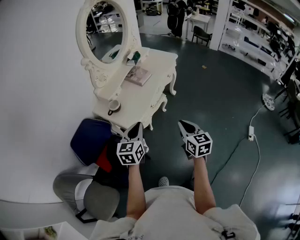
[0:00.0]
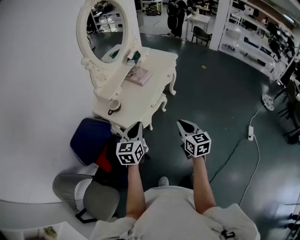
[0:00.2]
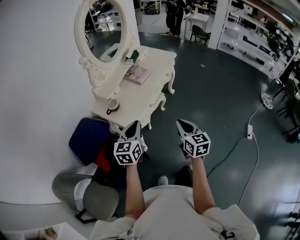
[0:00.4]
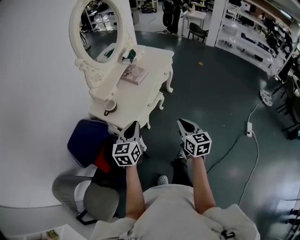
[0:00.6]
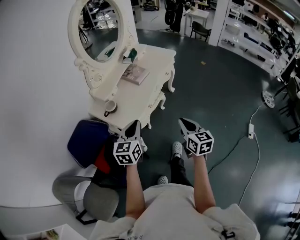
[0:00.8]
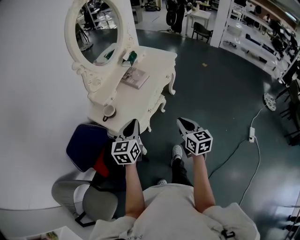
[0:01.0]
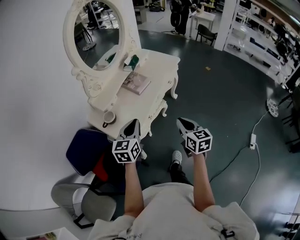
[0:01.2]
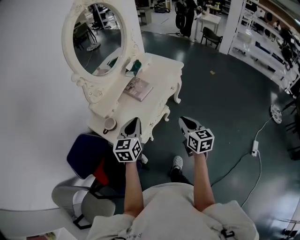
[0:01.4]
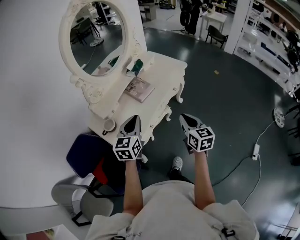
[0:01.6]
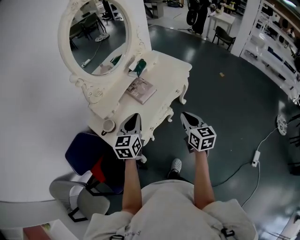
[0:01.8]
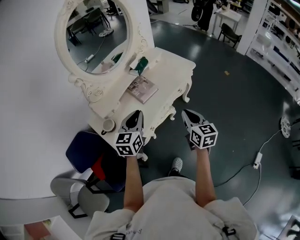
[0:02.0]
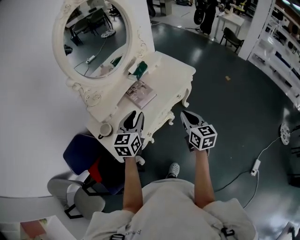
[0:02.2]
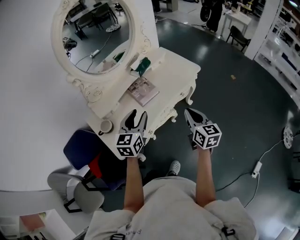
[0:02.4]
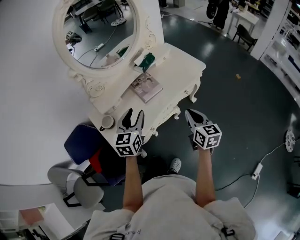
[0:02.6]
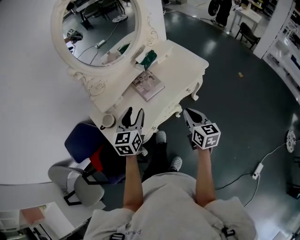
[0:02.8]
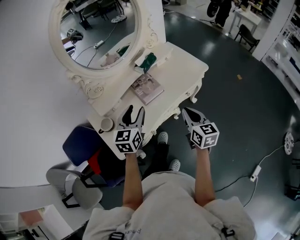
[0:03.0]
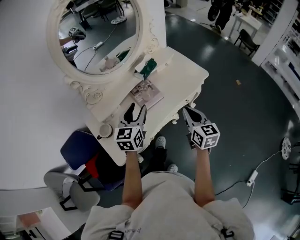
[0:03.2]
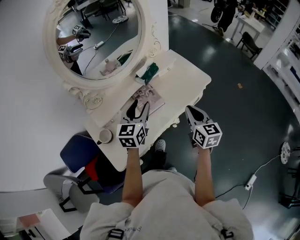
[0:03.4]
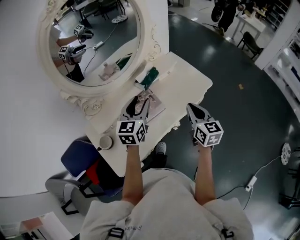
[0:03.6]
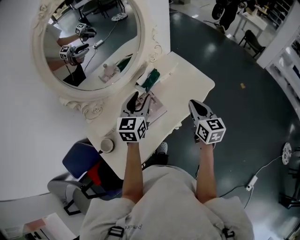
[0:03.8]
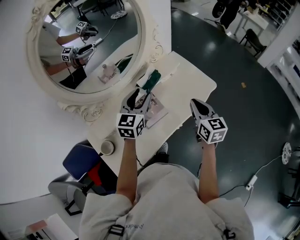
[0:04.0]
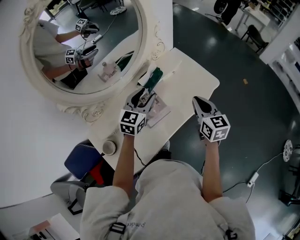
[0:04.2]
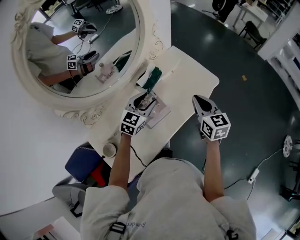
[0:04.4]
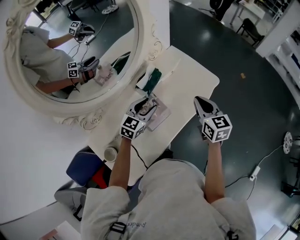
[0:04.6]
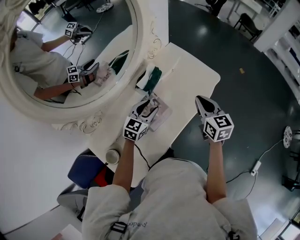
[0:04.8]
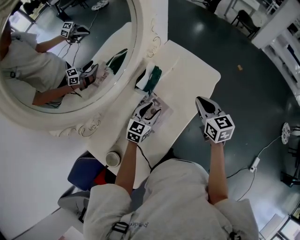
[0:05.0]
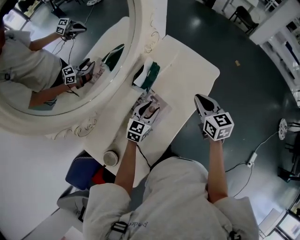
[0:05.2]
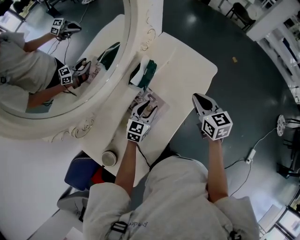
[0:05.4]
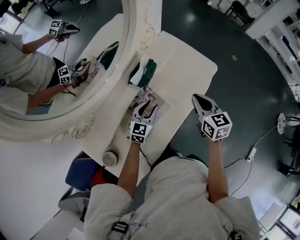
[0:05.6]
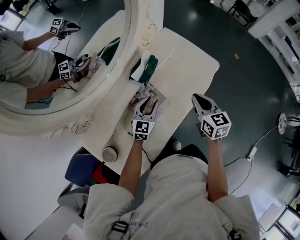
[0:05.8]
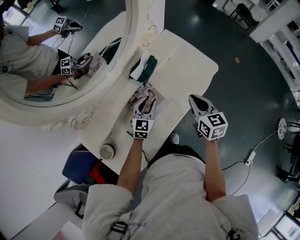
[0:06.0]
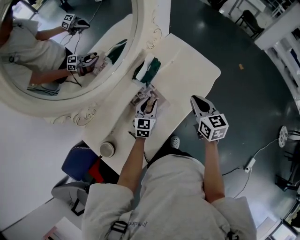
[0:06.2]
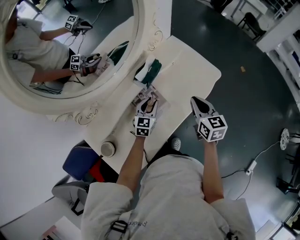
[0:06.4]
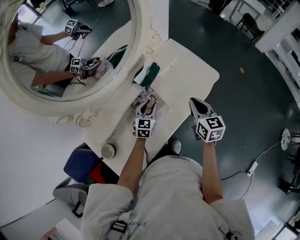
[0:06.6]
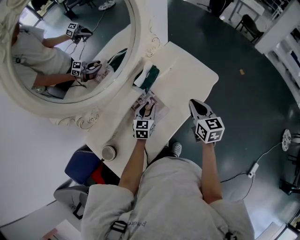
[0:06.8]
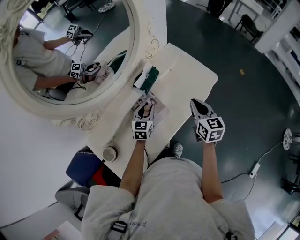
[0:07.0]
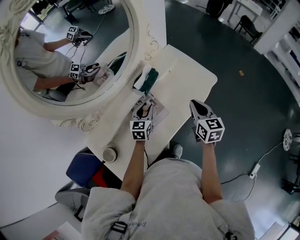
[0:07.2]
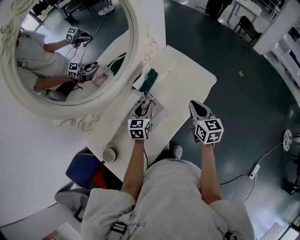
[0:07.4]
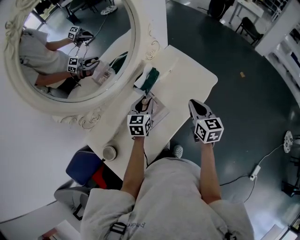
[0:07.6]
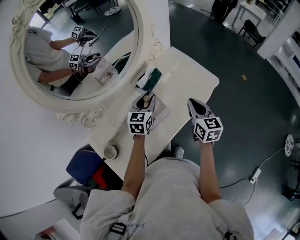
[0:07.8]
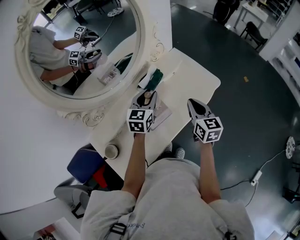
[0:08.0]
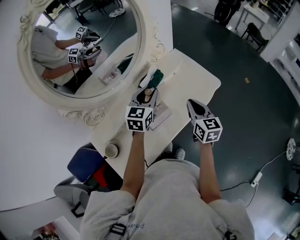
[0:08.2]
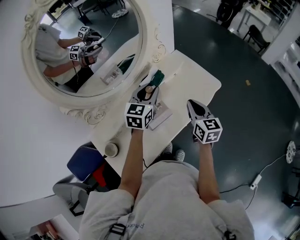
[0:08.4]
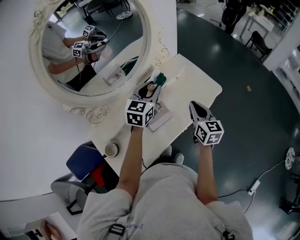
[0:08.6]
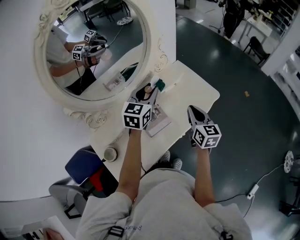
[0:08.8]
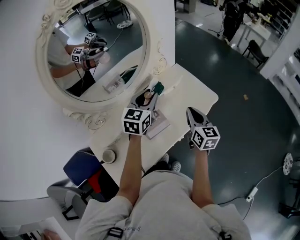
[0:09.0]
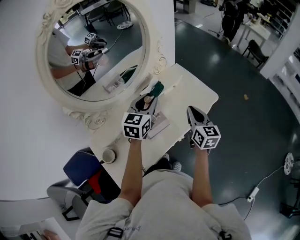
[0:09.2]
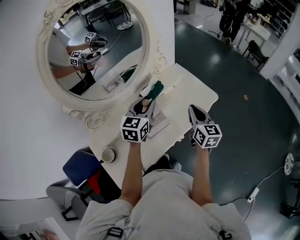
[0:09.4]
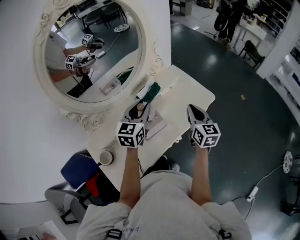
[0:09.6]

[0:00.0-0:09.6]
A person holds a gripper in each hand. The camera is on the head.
0:00.0 to 0:01.6: Both grippers move forward, roughly 25 cm.
0:01.6 to 0:03.2: The grippers both shift forward by approximately 20 cm. The left gripper opens.
0:03.2 to 0:04.8: The right gripper is displaced forward by roughly 20 cm, while the left gripper is displaced forward and downward by about 25 cm, and rotates roughly 30 degrees.
0:04.8 to 0:06.4: The left gripper travels downward by some 10 cm.
0:06.4 to 0:08.0: The left gripper heads upward, covering some 15 cm.
0:08.0 to 0:09.6: The left gripper shifts about 5 cm upward.

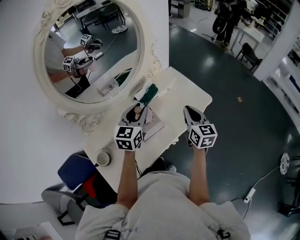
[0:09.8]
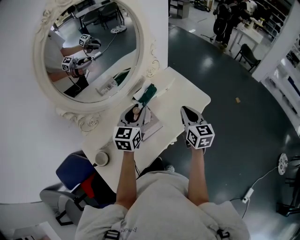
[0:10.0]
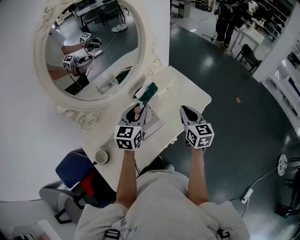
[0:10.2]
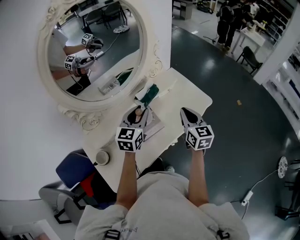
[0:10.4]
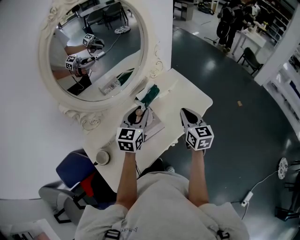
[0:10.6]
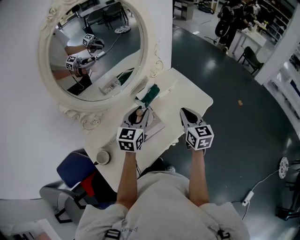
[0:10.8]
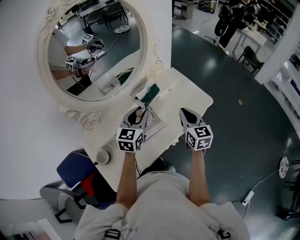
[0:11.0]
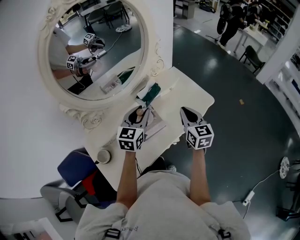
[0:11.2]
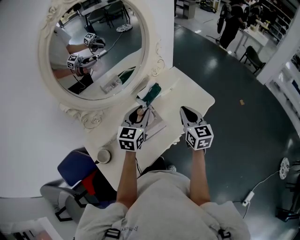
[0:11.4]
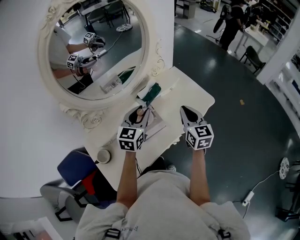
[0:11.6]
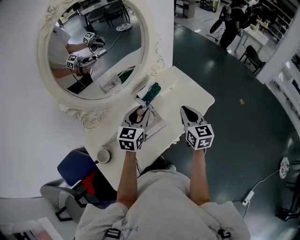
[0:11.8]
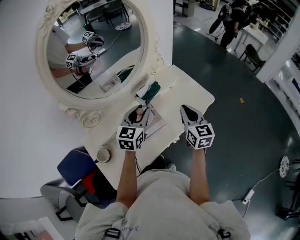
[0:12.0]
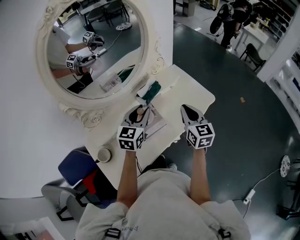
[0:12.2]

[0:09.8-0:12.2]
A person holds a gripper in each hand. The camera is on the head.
0:09.8 to 0:11.0: The grippers stay close to where they were, moving slightly.
0:11.0 to 0:12.2: Both grippers stay put.

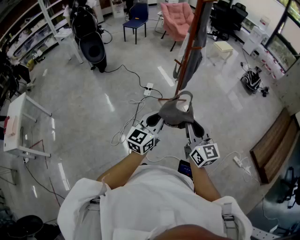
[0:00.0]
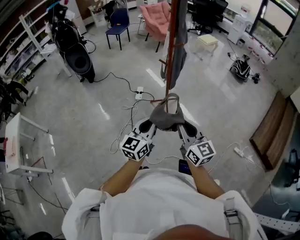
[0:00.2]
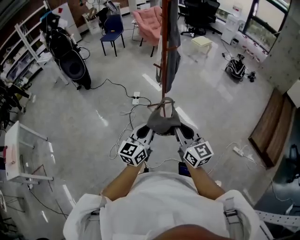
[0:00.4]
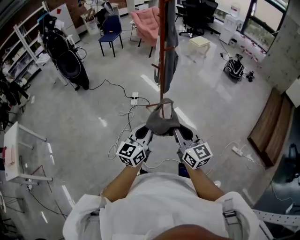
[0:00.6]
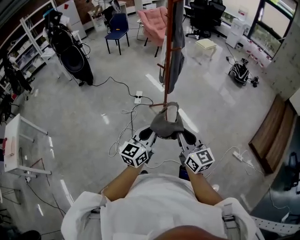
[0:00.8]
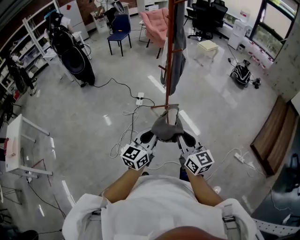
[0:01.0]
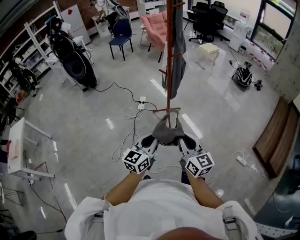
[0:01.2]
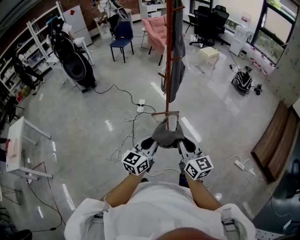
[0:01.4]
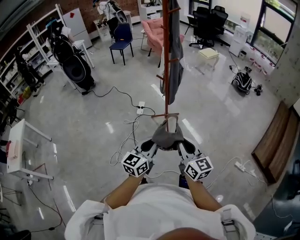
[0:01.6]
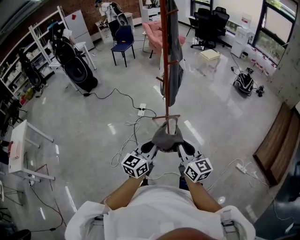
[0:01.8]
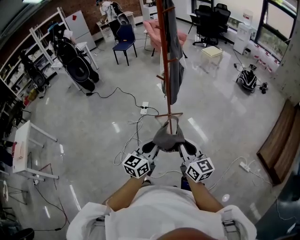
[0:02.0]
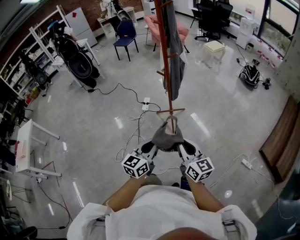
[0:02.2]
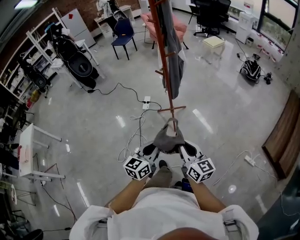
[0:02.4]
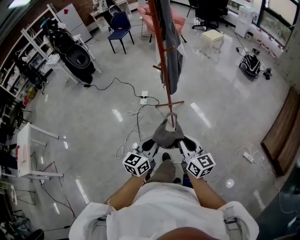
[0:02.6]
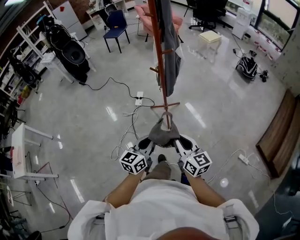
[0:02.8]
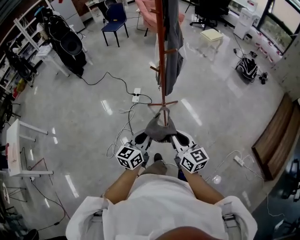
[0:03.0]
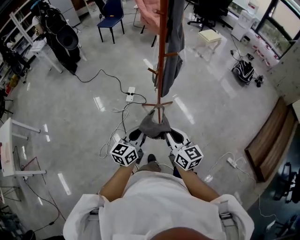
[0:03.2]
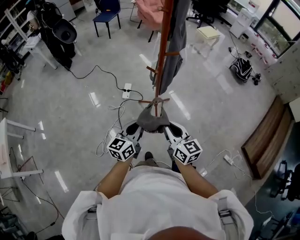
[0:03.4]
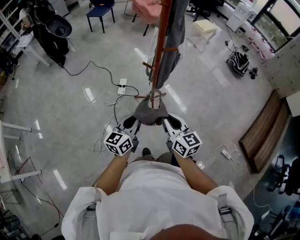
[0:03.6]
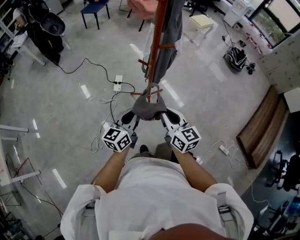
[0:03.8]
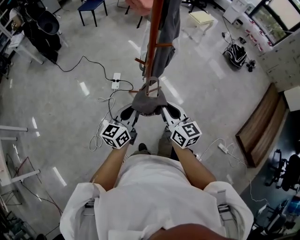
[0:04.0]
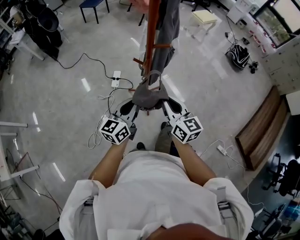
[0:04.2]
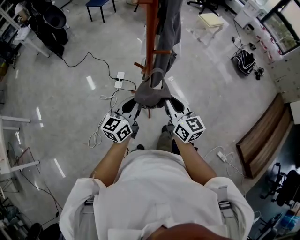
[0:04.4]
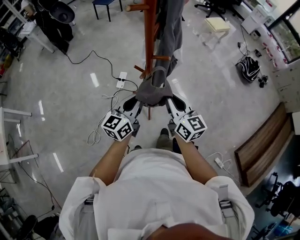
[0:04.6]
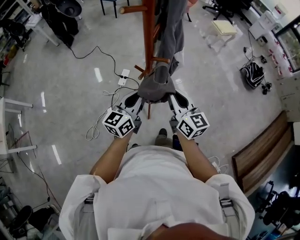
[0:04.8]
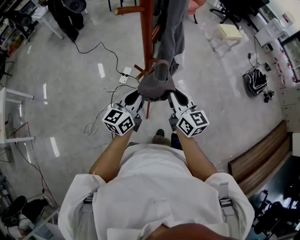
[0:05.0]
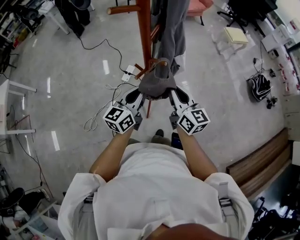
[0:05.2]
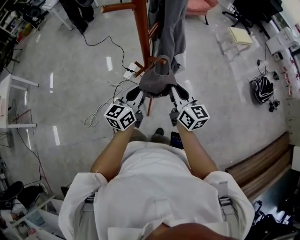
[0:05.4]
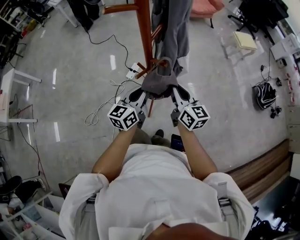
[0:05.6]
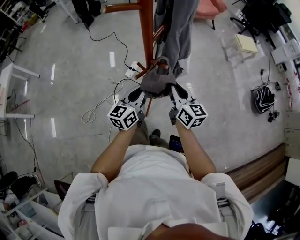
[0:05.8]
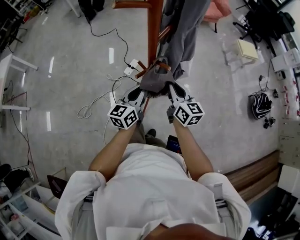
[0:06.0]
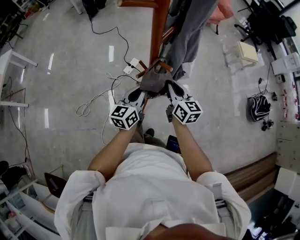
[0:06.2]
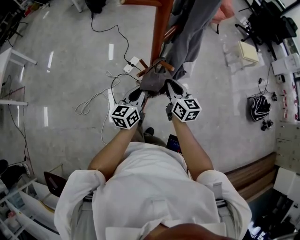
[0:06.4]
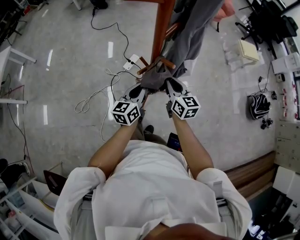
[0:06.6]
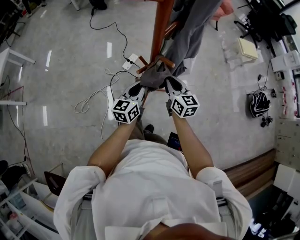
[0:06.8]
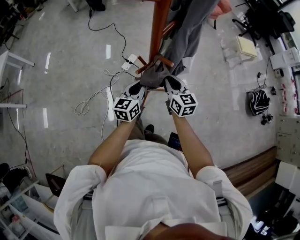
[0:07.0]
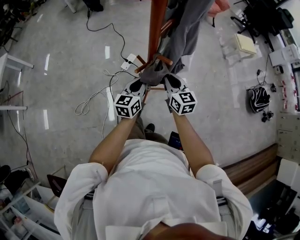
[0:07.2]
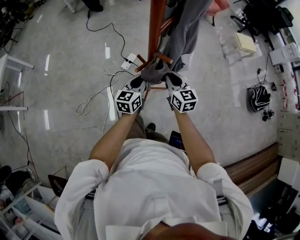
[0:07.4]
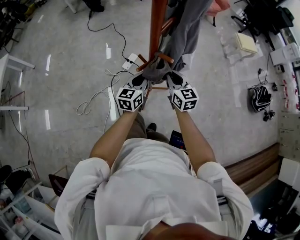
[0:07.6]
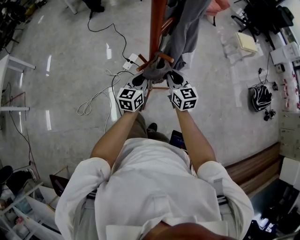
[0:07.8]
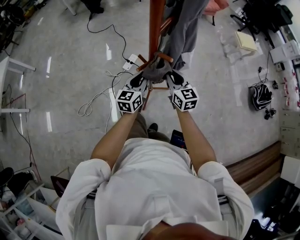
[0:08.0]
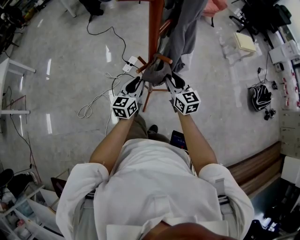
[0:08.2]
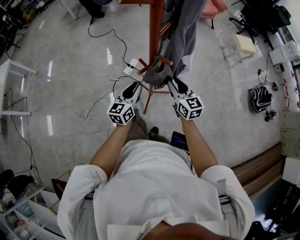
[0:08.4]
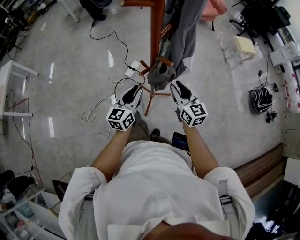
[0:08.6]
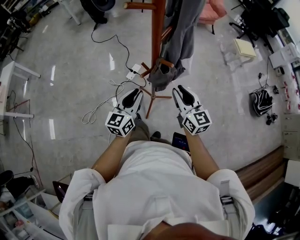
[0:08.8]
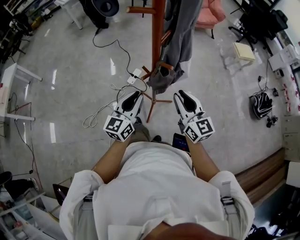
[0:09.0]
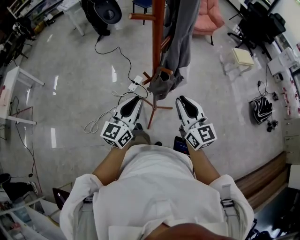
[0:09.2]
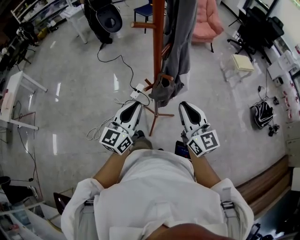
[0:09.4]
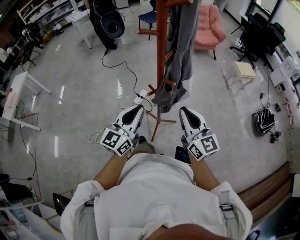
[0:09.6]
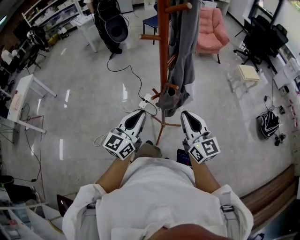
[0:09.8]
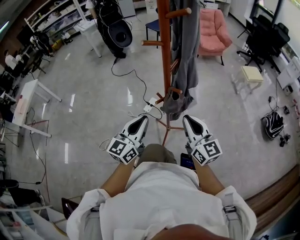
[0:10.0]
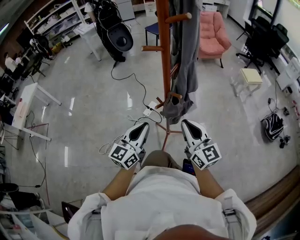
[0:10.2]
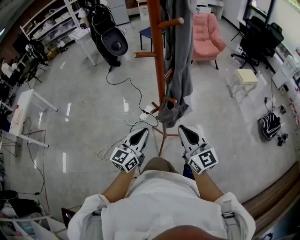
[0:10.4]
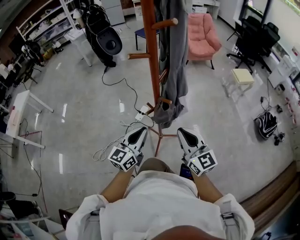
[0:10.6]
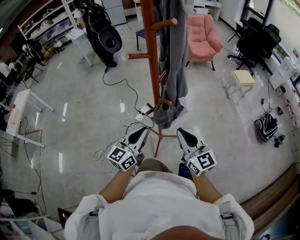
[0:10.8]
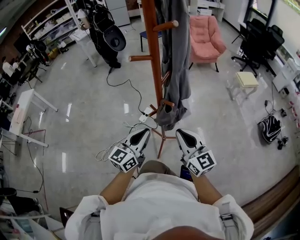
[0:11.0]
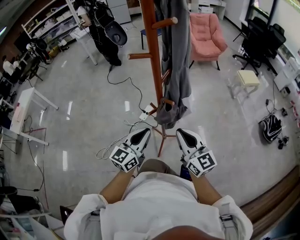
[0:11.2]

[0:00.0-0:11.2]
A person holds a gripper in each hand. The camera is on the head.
0:00.0 to 0:01.6: Both grippers travel together to the right, some 10 cm.
0:01.6 to 0:03.2: Both grippers travel together forward, some 20 cm.
0:03.2 to 0:04.8: Both grippers move forward, some 30 cm.
0:04.8 to 0:06.4: The left gripper goes approximately 10 cm downward and forward, and changes its angle by roughly 30 degrees. The right gripper heads forward and downward, covering about 15 cm.
0:06.4 to 0:08.0: The grippers stay close to where they were, moving slightly.
0:08.0 to 0:09.6: Both grippers travel together upward and backward, approximately 25 cm. The right gripper rotates approximately 20 degrees, while the left gripper rotates roughly 20 degrees.
0:09.6 to 0:11.2: The left gripper is displaced downward by some 5 cm.

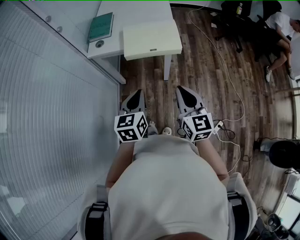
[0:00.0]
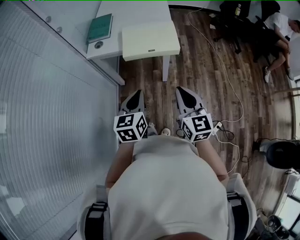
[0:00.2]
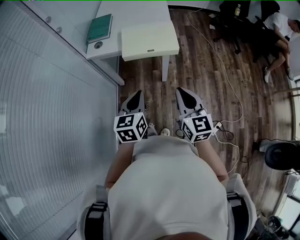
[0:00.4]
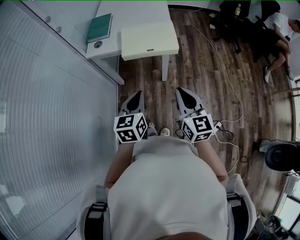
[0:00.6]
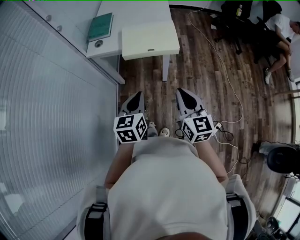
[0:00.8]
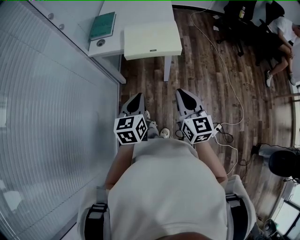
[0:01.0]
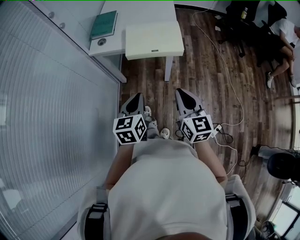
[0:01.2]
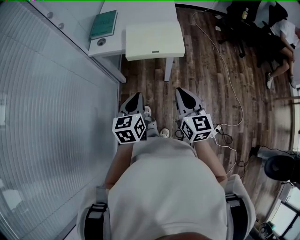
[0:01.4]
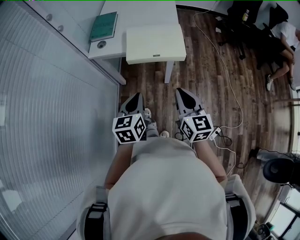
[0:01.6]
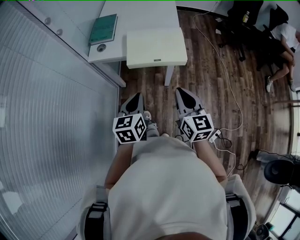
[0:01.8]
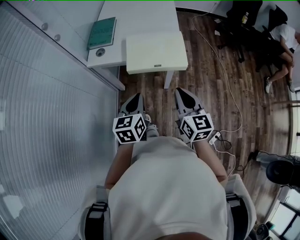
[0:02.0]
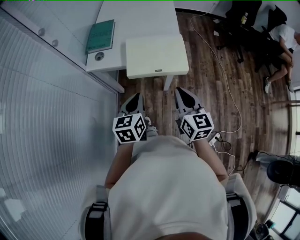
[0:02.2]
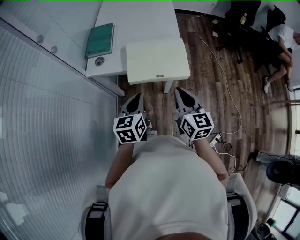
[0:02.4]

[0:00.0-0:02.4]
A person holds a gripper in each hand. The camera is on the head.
0:00.0 to 0:01.2: The grippers make only small movements.
0:01.2 to 0:02.4: Both grippers move forward, roughly 15 cm.
